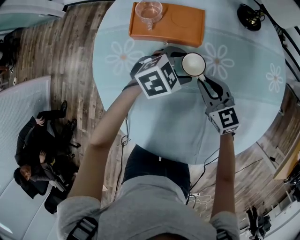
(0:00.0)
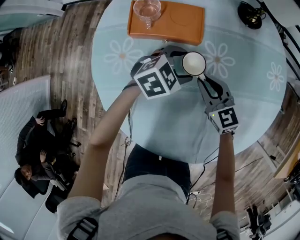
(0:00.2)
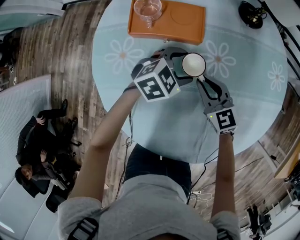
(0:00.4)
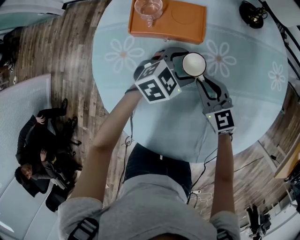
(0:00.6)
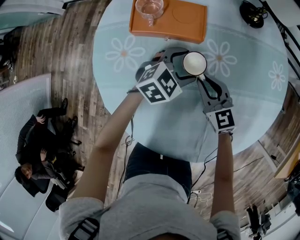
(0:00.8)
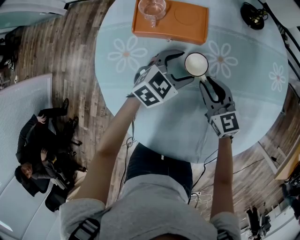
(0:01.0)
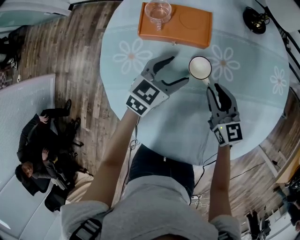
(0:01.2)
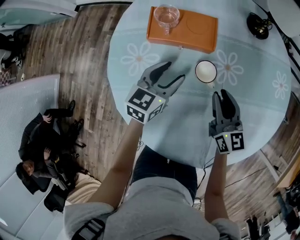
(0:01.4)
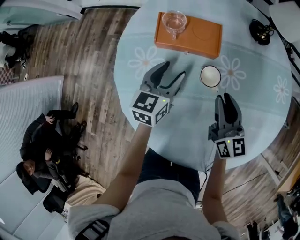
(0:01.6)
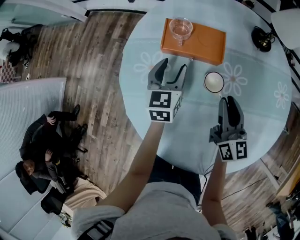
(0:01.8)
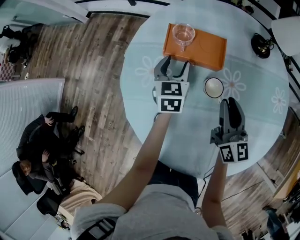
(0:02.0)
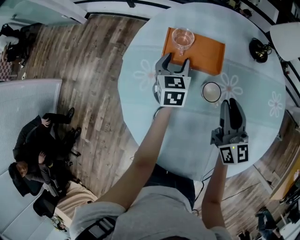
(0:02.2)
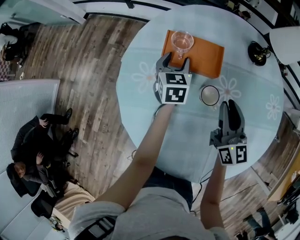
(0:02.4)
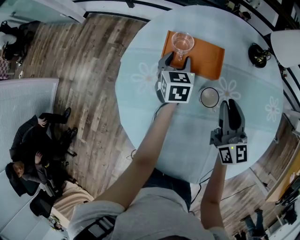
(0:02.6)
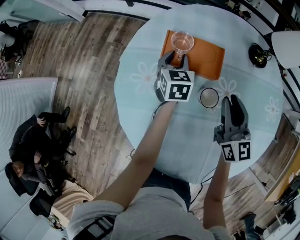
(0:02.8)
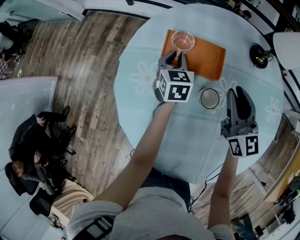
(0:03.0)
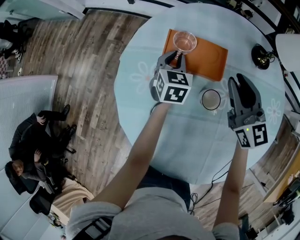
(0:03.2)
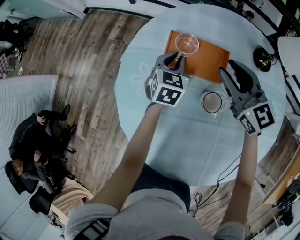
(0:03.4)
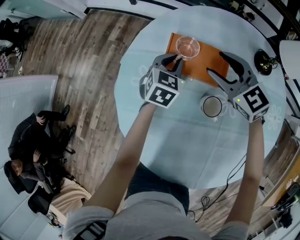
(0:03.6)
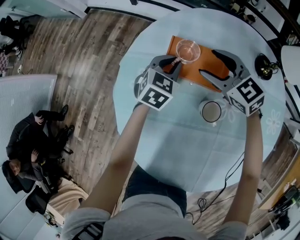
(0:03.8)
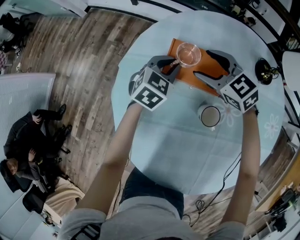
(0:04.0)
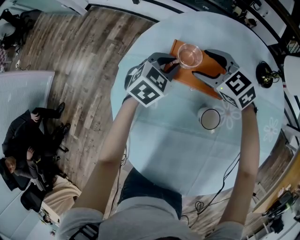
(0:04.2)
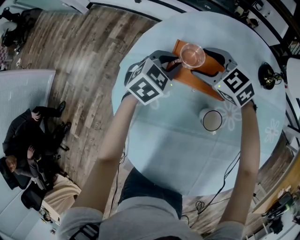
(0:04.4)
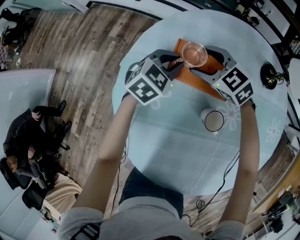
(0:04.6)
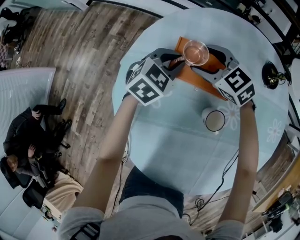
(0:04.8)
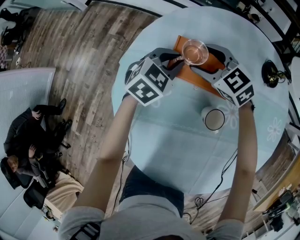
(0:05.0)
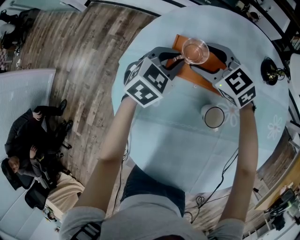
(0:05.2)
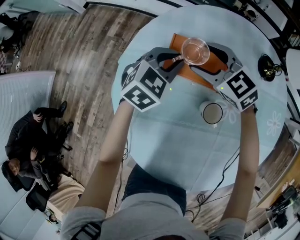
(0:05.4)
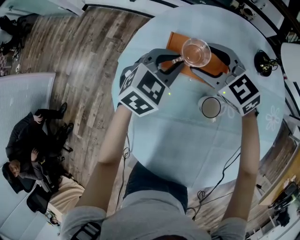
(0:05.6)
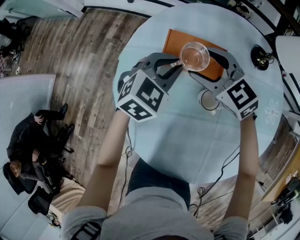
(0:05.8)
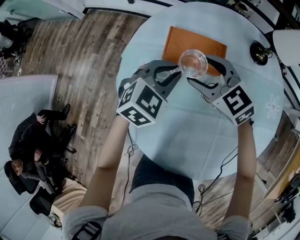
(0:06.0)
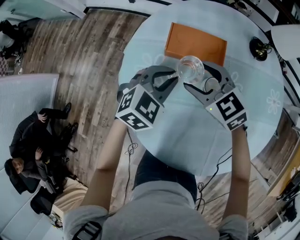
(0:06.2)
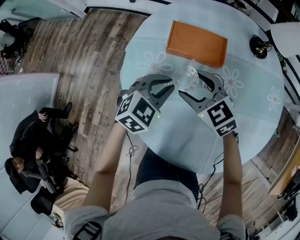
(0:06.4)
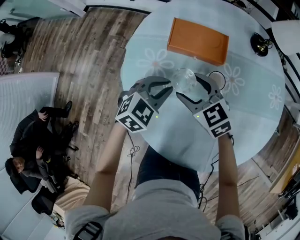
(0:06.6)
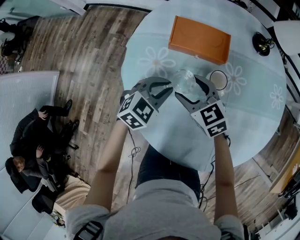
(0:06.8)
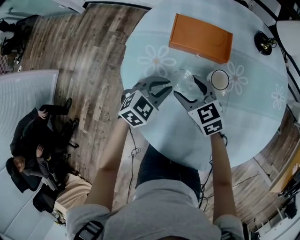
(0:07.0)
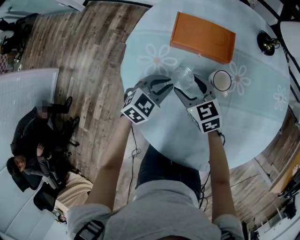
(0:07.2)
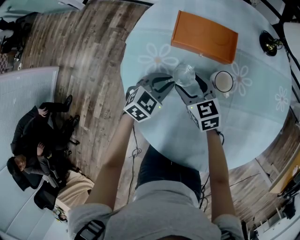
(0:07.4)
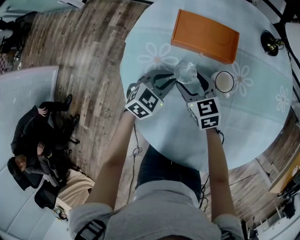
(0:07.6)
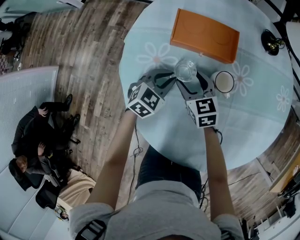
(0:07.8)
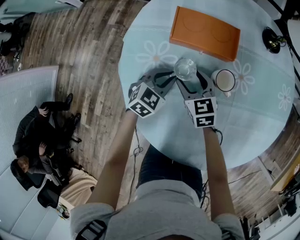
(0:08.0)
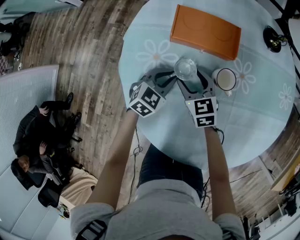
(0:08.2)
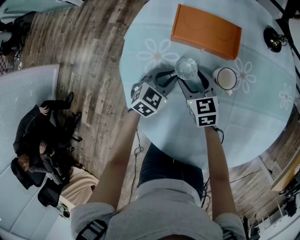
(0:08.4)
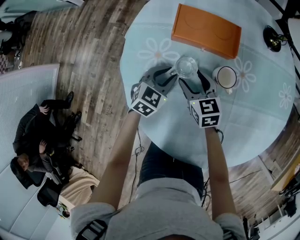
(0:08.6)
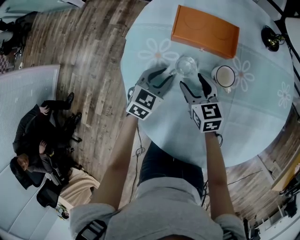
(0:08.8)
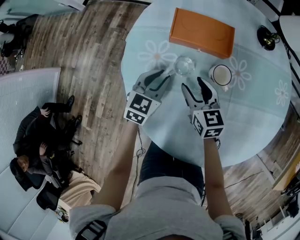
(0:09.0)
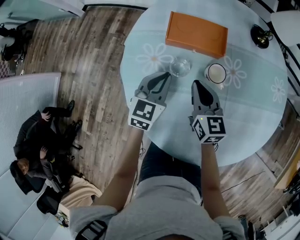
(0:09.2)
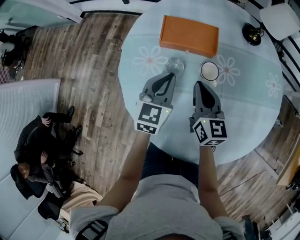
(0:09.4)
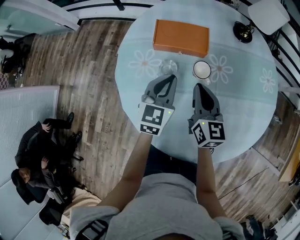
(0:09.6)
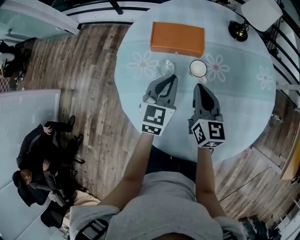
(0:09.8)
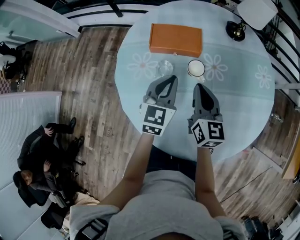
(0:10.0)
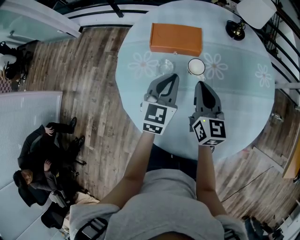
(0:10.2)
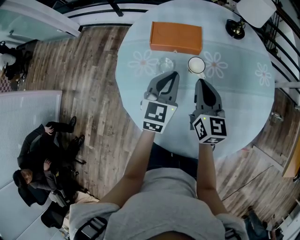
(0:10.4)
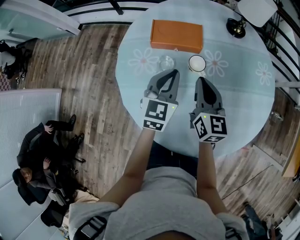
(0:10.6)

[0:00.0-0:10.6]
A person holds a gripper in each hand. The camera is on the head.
0:00.0 to 0:01.6: The left gripper travels to the left and upward by roughly 15 cm, and changes its angle by some 60 degrees; the right gripper travels upward by some 10 cm, and swivels approximately 30 degrees.
0:01.6 to 0:03.0: The right gripper goes approximately 15 cm forward and upward; the left gripper goes roughly 15 cm forward, rotates about 20 degrees, and closes its fingers.
0:03.0 to 0:04.6: The left gripper turns by roughly 40 degrees. Meanwhile the right gripper is displaced forward, to the left and downward by approximately 25 cm, points its fingers roughly 30 degrees further downward, and opens its fingers.
0:04.6 to 0:06.0: The two grippers go some 15 cm backward and upward.
0:06.0 to 0:07.6: The two grippers go about 15 cm downward and backward. The right gripper turns by roughly 30 degrees.
0:07.6 to 0:09.0: The right gripper shifts by roughly 5 cm. The left gripper turns by roughly 20 degrees.
0:09.0 to 0:10.6: The grippers both shift upward and to the right by approximately 15 cm. The right gripper turns by approximately 30 degrees, and closes.

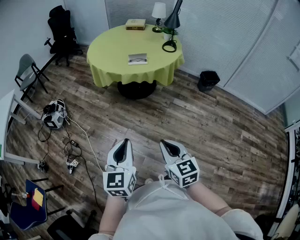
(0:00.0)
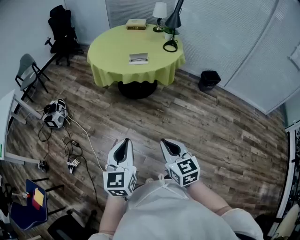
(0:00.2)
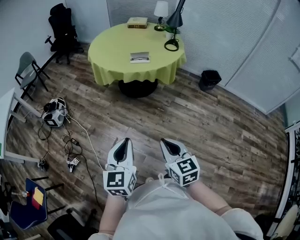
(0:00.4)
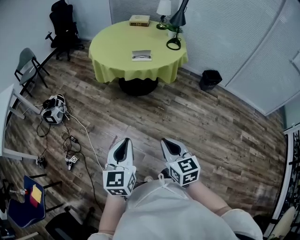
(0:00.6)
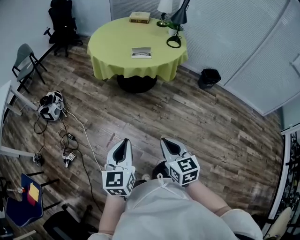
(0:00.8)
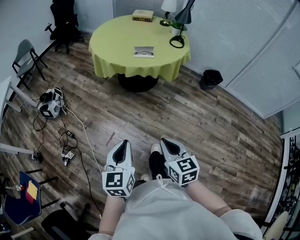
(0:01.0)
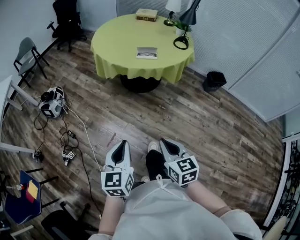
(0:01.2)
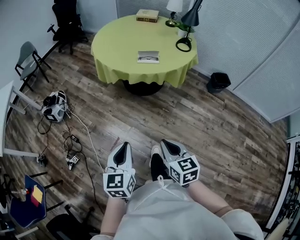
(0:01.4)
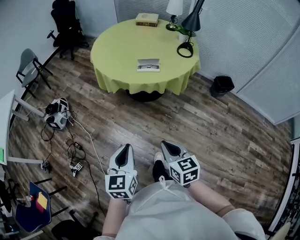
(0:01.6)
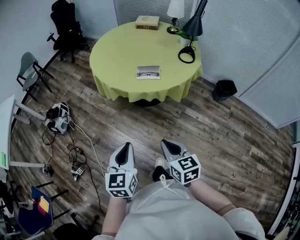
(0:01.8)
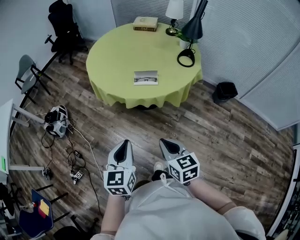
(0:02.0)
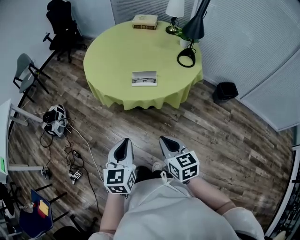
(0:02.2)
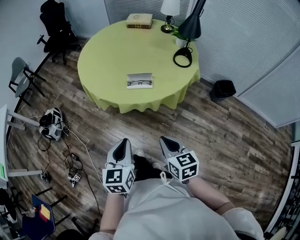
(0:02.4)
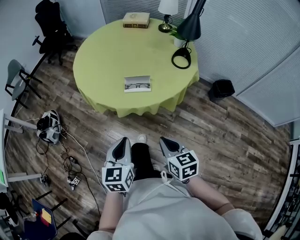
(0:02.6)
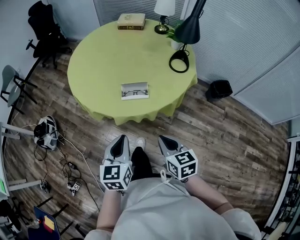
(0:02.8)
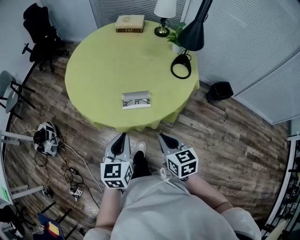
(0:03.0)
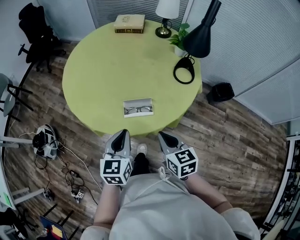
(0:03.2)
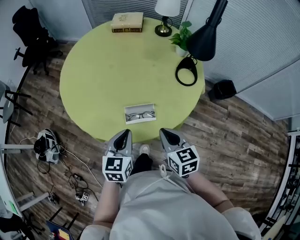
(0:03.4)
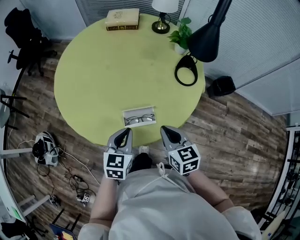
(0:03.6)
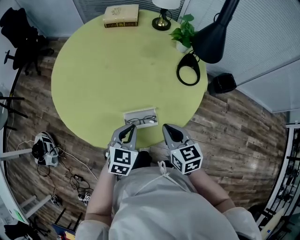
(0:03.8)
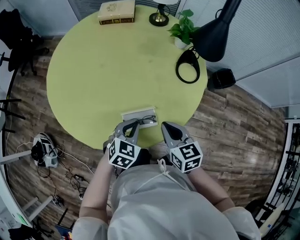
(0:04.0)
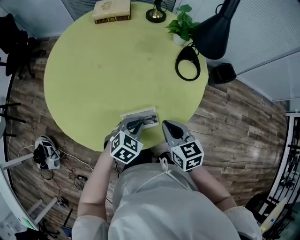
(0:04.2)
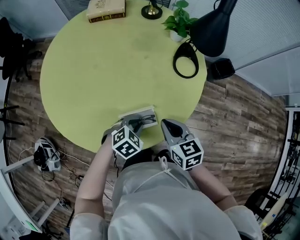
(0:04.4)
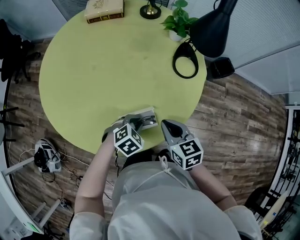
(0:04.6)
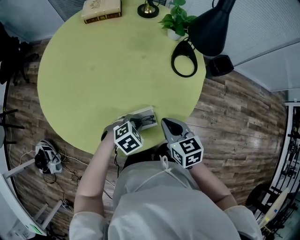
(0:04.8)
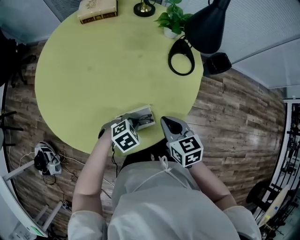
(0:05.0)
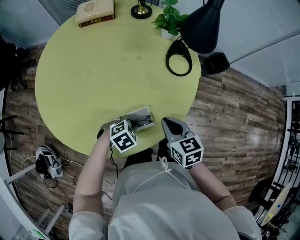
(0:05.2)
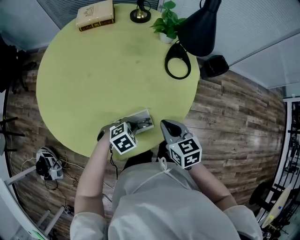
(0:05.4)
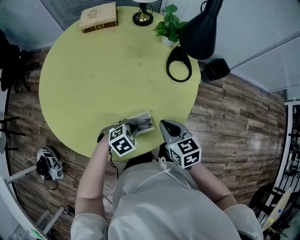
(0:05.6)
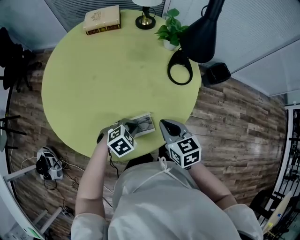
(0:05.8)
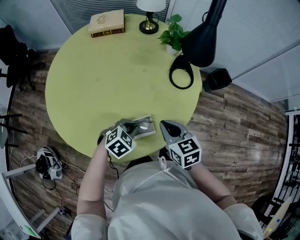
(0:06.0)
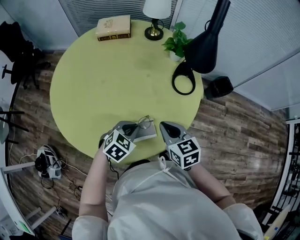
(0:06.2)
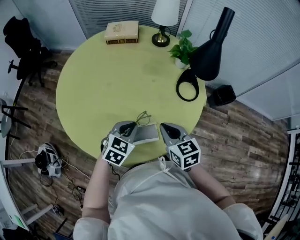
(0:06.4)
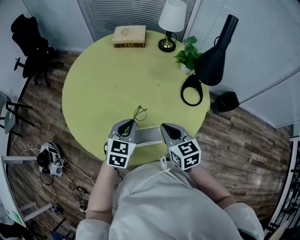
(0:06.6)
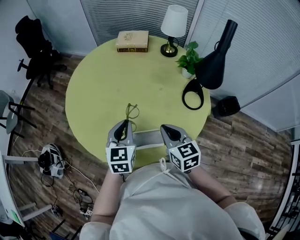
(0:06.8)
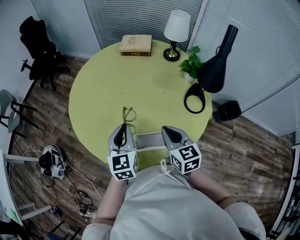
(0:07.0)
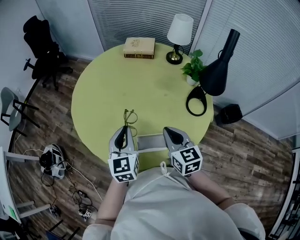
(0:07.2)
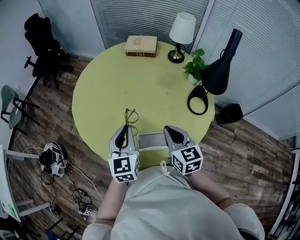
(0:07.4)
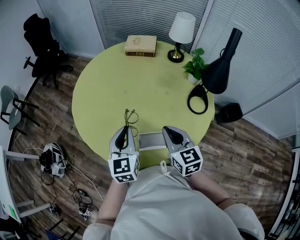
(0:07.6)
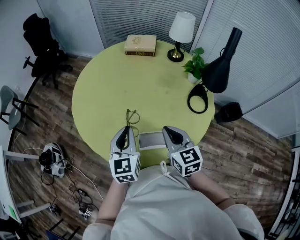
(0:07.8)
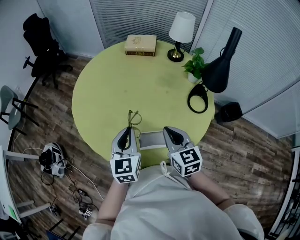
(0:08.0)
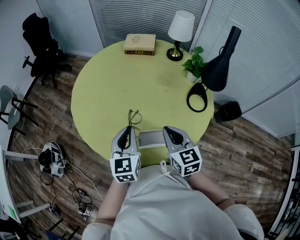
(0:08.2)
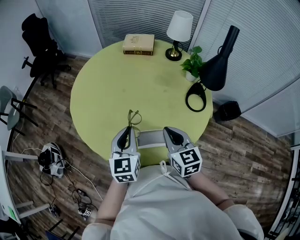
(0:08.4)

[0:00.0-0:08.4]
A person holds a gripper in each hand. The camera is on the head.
0:00.0 to 0:01.4: The left gripper goes roughly 10 cm forward and downward. Meanwhile the right gripper goes about 10 cm forward.
0:01.4 to 0:02.8: Both grippers move forward, approximately 35 cm.
0:02.8 to 0:04.2: The right gripper ends up about 30 cm from where it was, while the left gripper ends up roughly 35 cm from where it was, and changes its angle by about 60 degrees.
0:04.2 to 0:05.6: The left gripper rotates some 30 degrees.
0:05.6 to 0:07.0: The left gripper goes some 20 cm upward, and angles its fingers upward, by some 50 degrees. Meanwhile the right gripper is displaced upward by about 10 cm.
0:07.0 to 0:08.4: There are only small adjustments of the grippers.

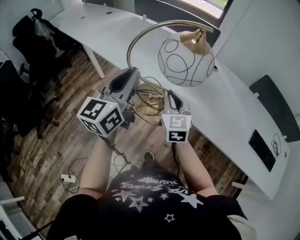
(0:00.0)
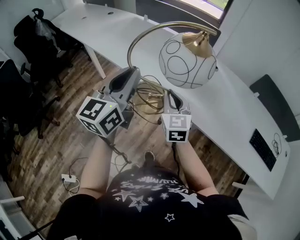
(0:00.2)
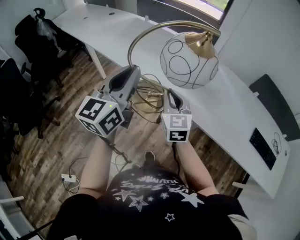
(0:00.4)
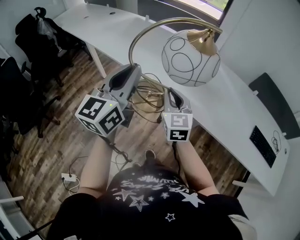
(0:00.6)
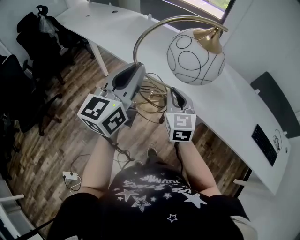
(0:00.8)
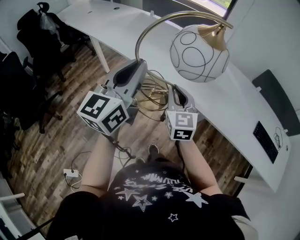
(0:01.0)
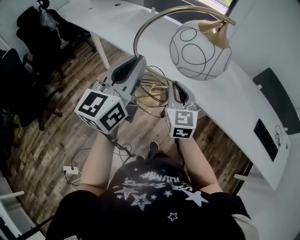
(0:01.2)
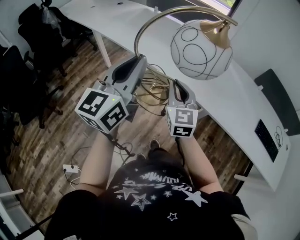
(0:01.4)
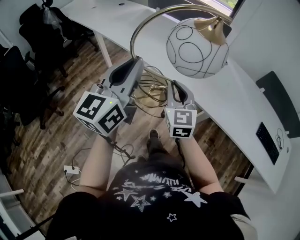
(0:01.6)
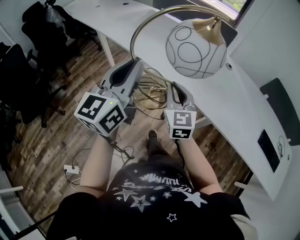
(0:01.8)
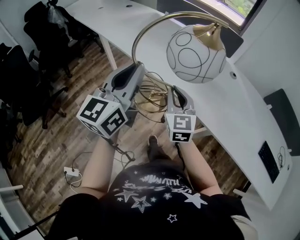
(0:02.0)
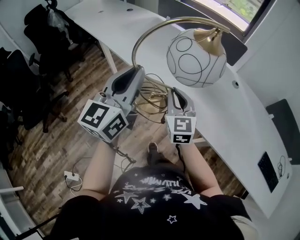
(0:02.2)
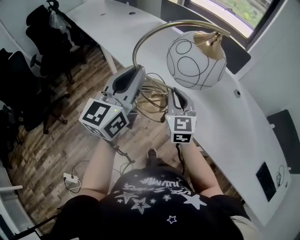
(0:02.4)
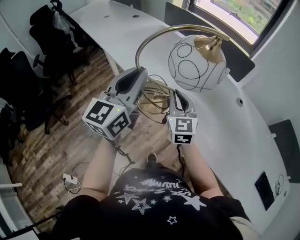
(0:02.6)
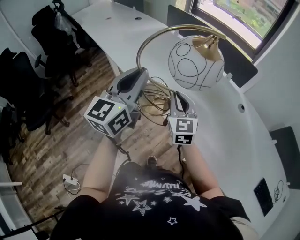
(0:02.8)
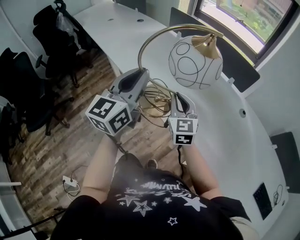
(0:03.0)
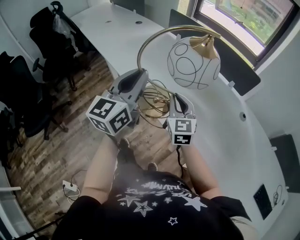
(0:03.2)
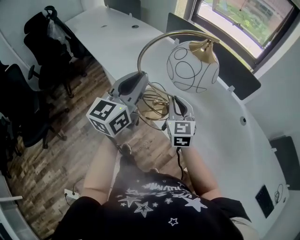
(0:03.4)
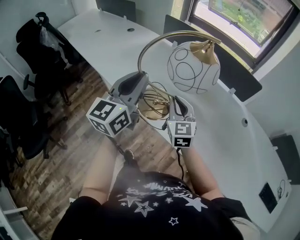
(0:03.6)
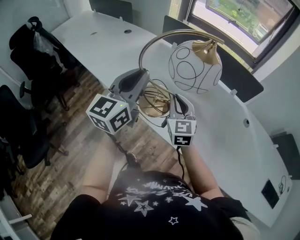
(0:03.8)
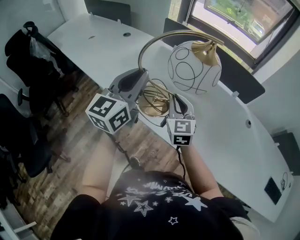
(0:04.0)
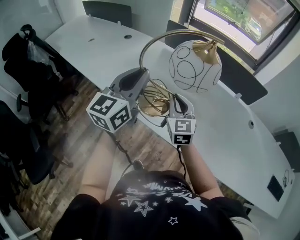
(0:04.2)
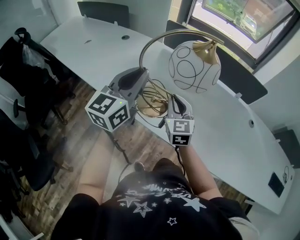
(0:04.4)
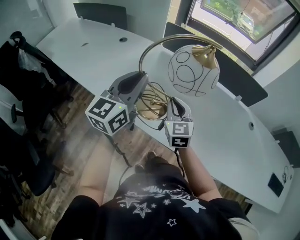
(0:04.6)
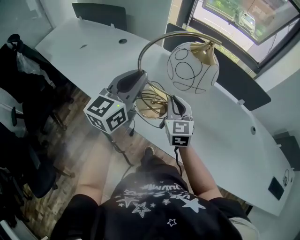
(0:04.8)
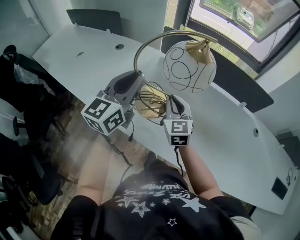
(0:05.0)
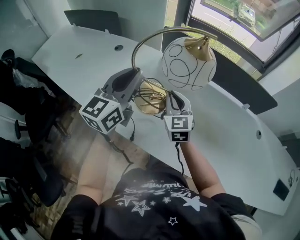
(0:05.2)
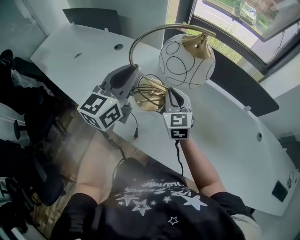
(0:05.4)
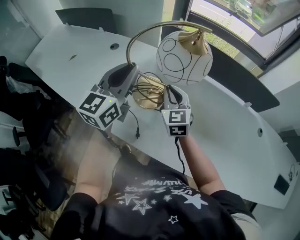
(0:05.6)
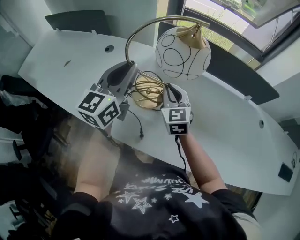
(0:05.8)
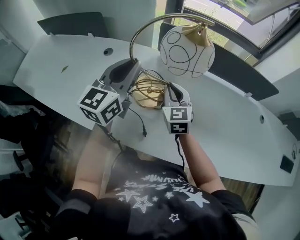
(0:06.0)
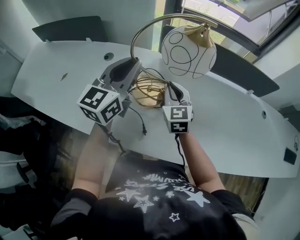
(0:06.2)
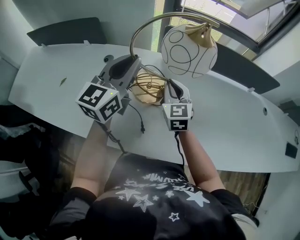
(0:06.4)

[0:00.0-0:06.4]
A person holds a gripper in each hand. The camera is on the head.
0:00.0 to 0:01.6: Both grippers move backward and to the left, roughly 10 cm.
0:01.6 to 0:03.2: The two grippers go roughly 30 cm forward.
0:03.2 to 0:04.8: Both grippers travel together forward and to the left, about 30 cm. The left gripper turns by some 20 degrees.
0:04.8 to 0:06.4: Both grippers travel together forward and to the left, about 25 cm.
